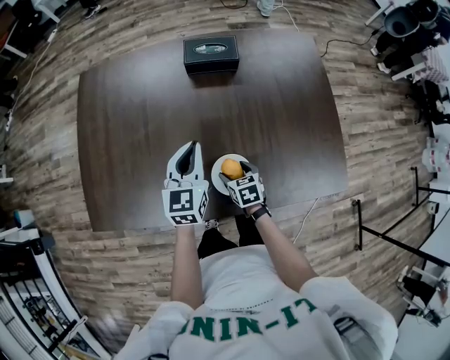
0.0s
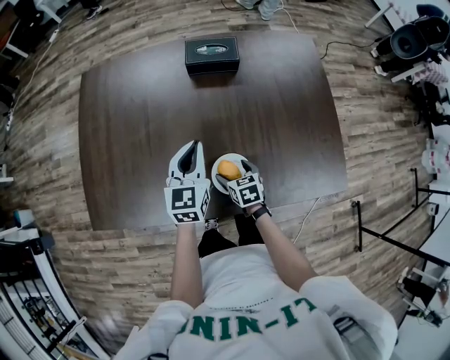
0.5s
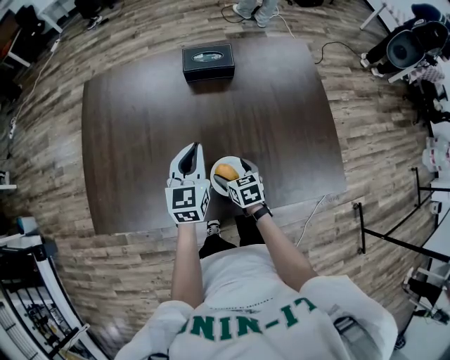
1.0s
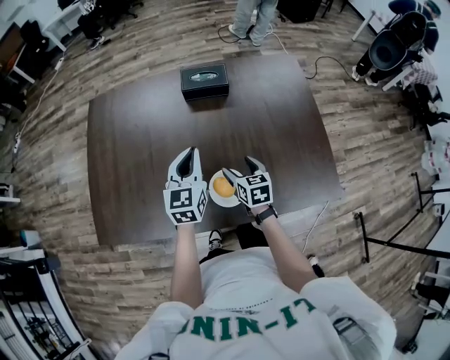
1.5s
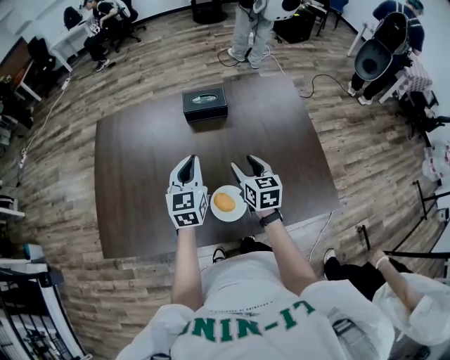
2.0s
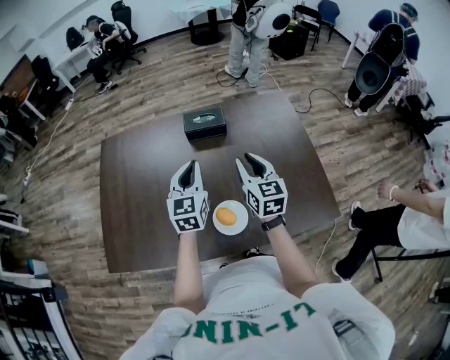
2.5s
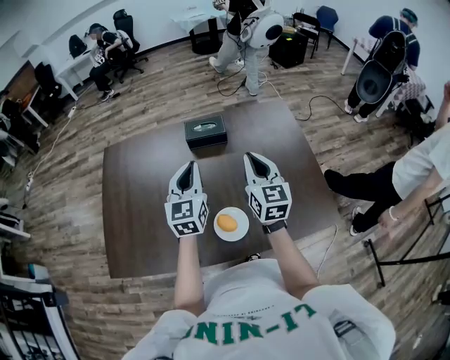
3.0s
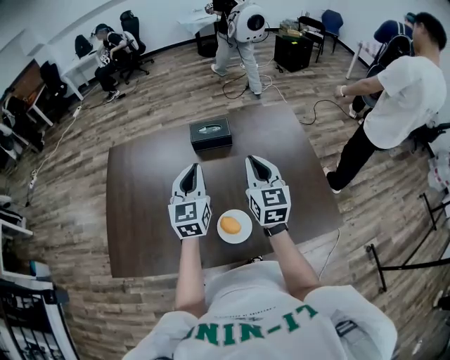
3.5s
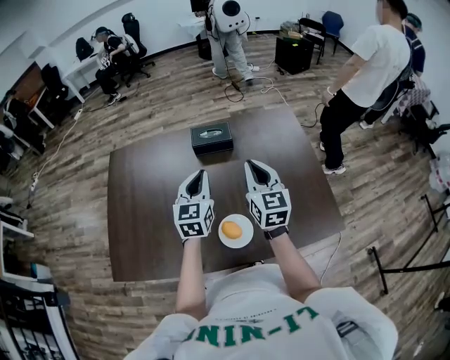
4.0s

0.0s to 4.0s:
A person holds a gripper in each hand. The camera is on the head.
0.0s to 2.0s: The right gripper heads upward, covering some 20 cm, and turns by some 30 degrees, while the left gripper goes approximately 10 cm upward.
2.0s to 4.0s: The left gripper changes place by approximately 5 cm, while the right gripper moves upward, about 15 cm, rotates roughly 20 degrees, and closes its fingers.

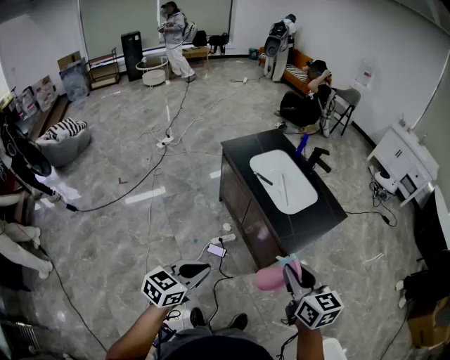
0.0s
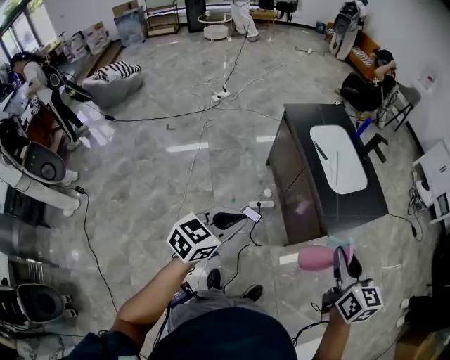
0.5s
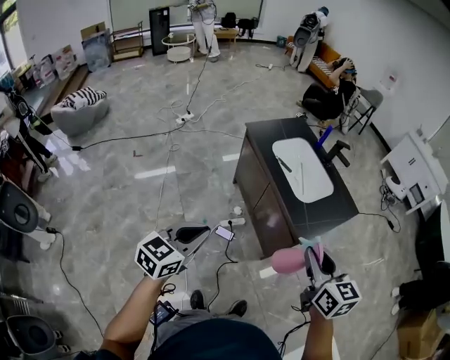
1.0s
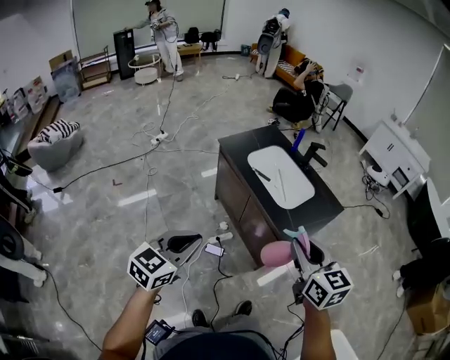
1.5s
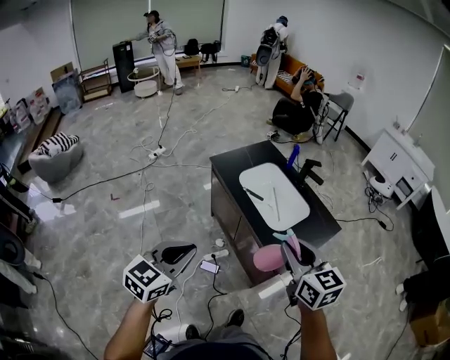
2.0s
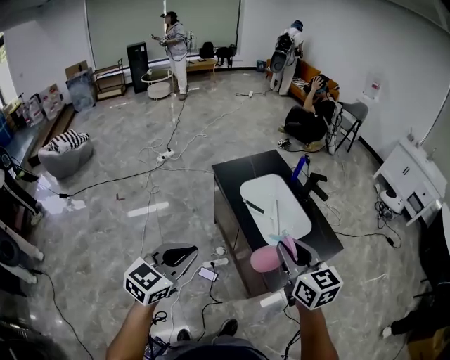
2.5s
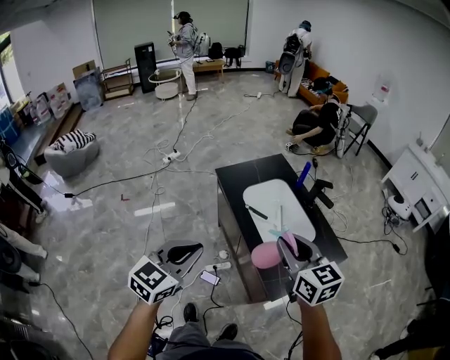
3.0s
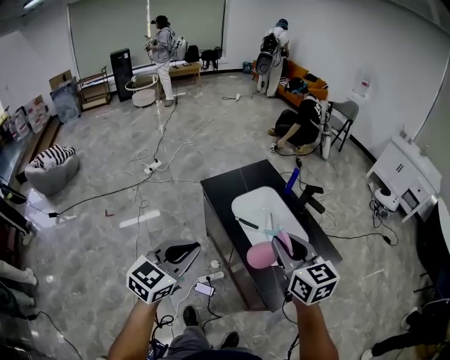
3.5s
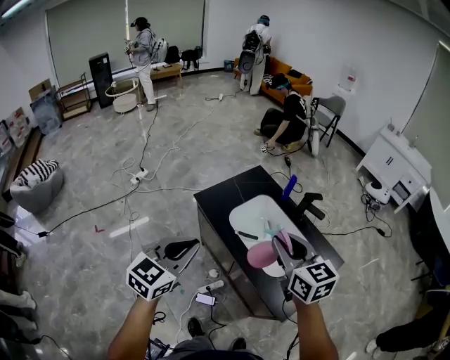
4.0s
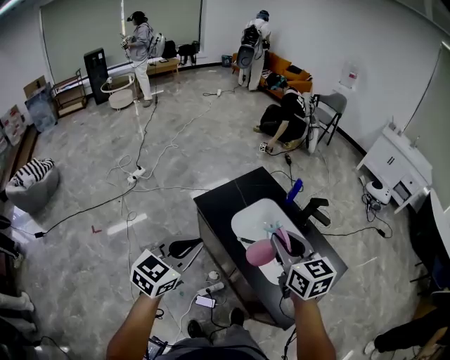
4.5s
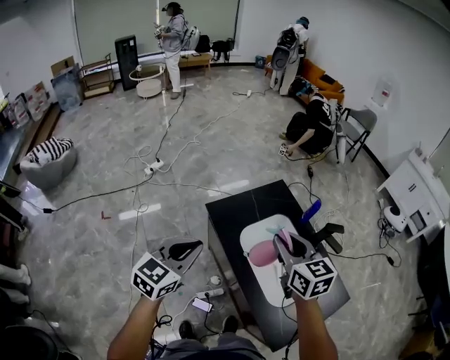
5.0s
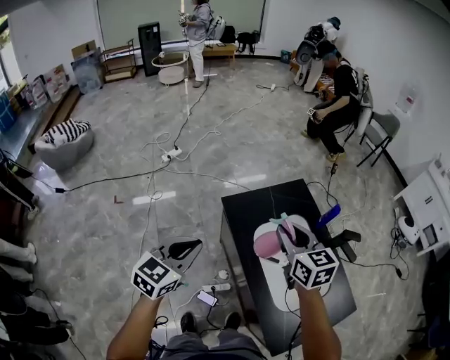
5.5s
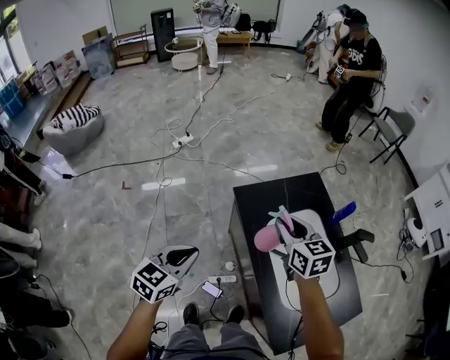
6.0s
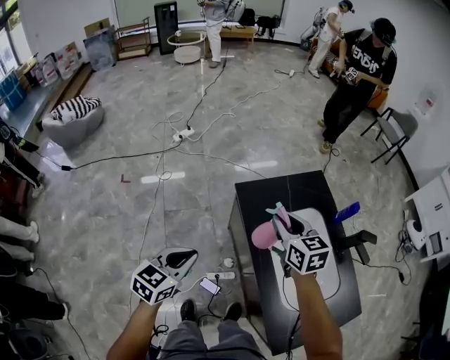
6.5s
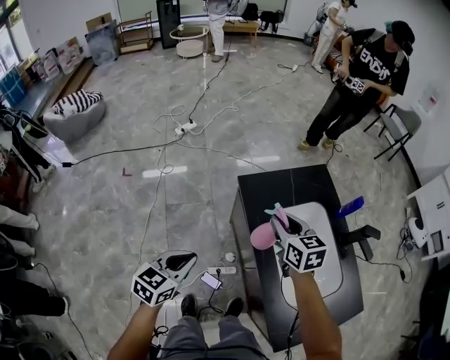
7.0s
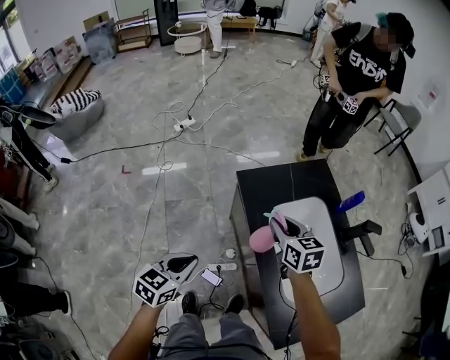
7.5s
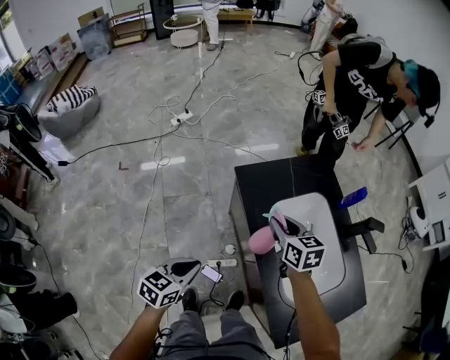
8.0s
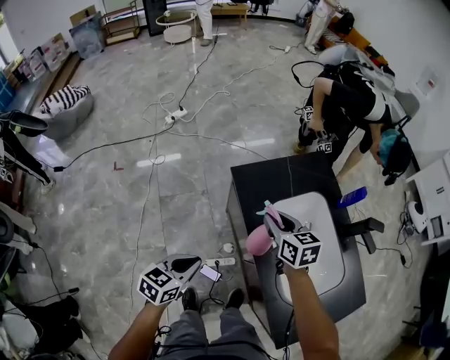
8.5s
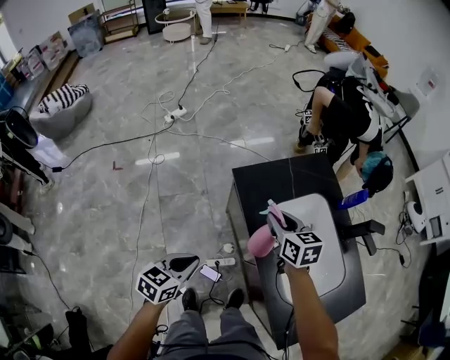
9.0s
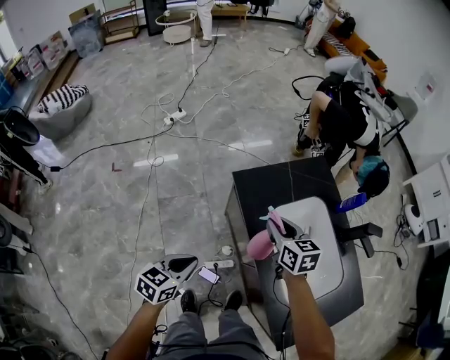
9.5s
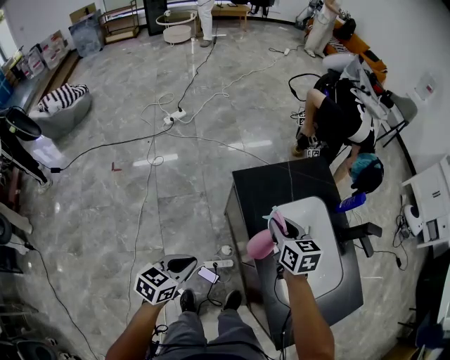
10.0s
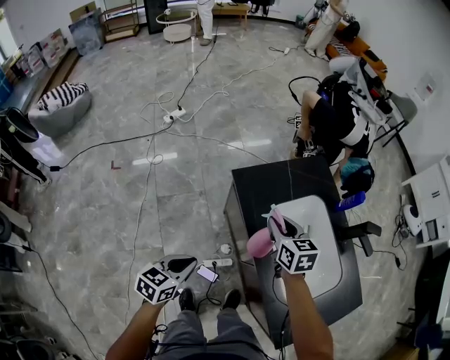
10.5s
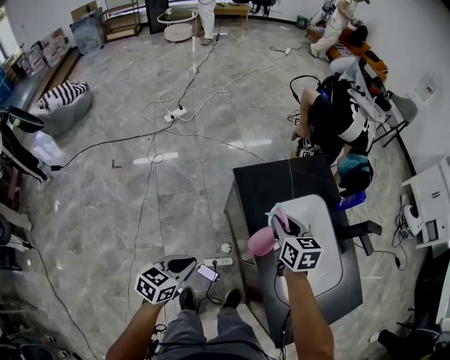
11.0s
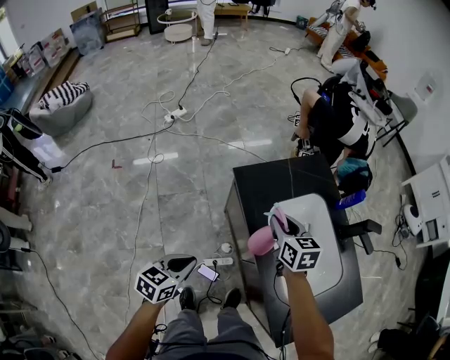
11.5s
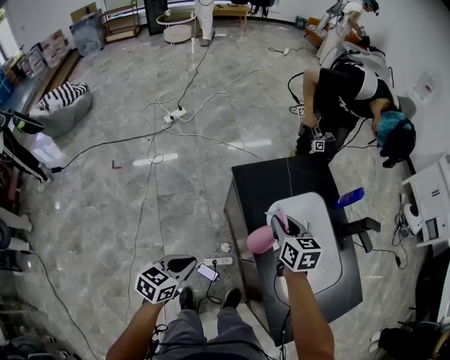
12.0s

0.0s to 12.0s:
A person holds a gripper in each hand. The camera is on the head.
0.0s to 2.0s: Both grippers travel together forward and upward, roughly 20 cm.
2.0s to 4.0s: The grippers both shift forward by roughly 30 cm.
4.0s to 6.0s: The right gripper shifts some 30 cm forward, downward and to the left, and changes its angle by approximately 20 degrees, while the left gripper heads downward, forward and to the left, covering approximately 20 cm, and turns by some 30 degrees.
6.0s to 8.0s: The right gripper is displaced downward by roughly 15 cm. The left gripper travels downward and backward by roughly 15 cm.
8.0s to 10.0s: The left gripper ends up some 5 cm from where it was.
10.0s to 12.0s: There are only small adjustments of the grippers.

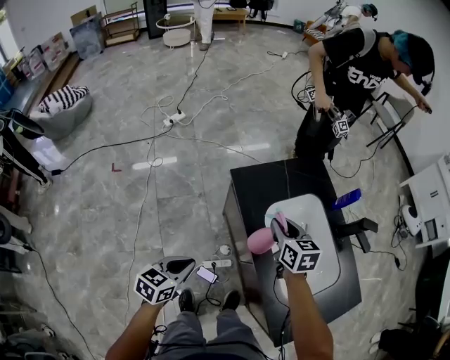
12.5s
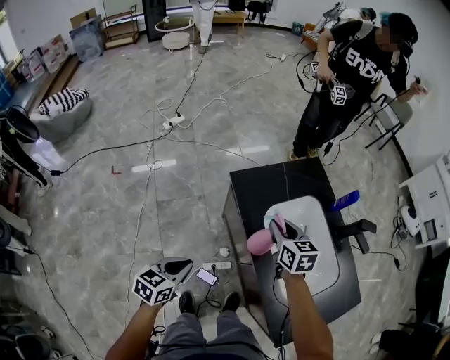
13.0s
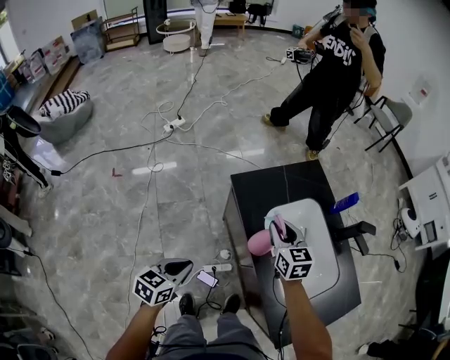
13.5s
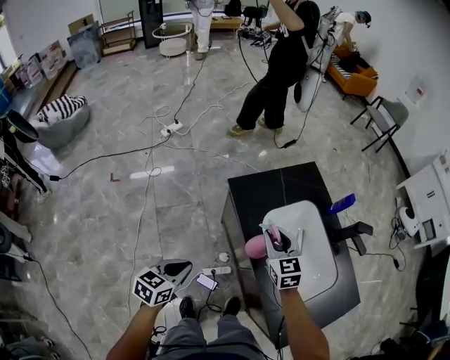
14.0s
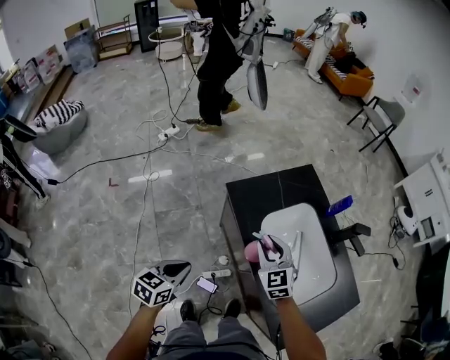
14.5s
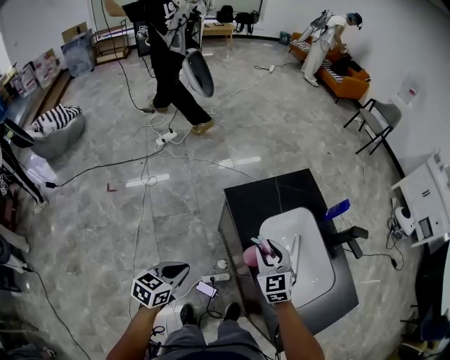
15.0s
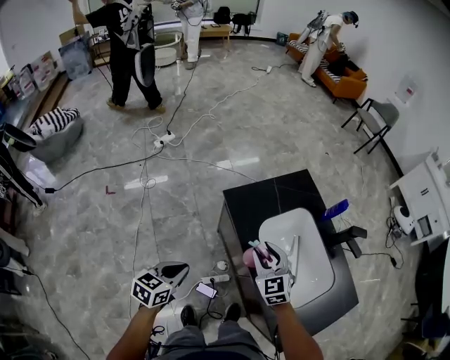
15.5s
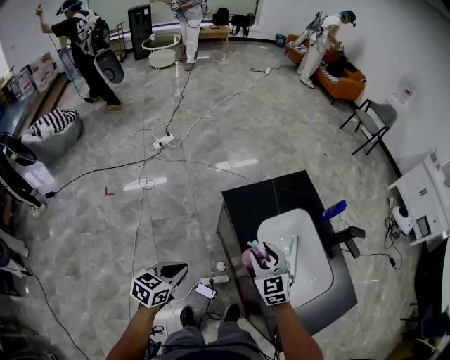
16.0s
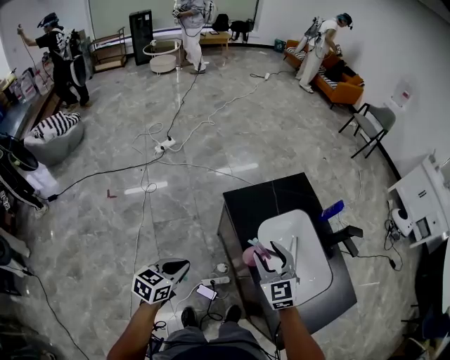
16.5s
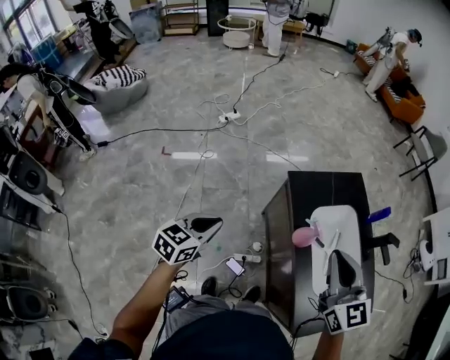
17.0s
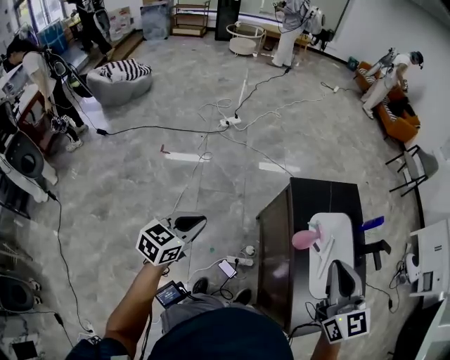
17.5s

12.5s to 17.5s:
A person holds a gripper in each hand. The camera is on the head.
12.5s to 15.0s: The right gripper ends up roughly 5 cm from where it was, and turns by some 30 degrees, while the left gripper moves approximately 5 cm.
15.0s to 17.5s: The left gripper travels to the left, upward and backward by some 25 cm; the right gripper is displaced upward and backward by approximately 35 cm, turns by approximately 20 degrees, and closes.

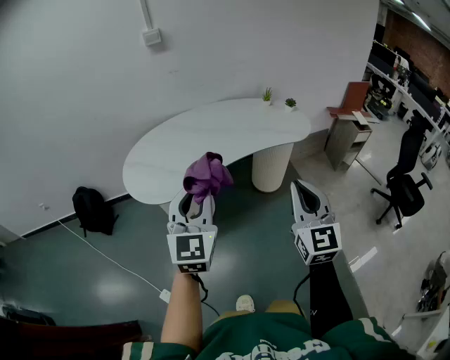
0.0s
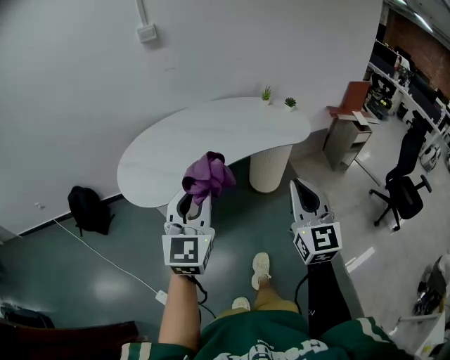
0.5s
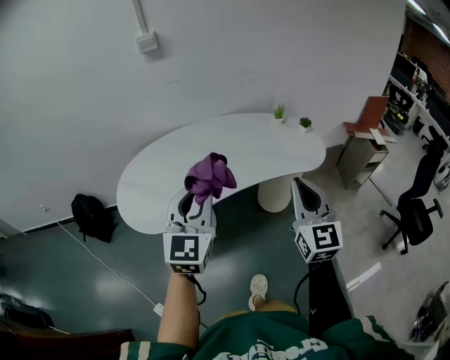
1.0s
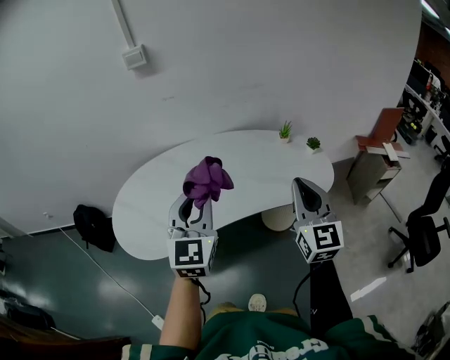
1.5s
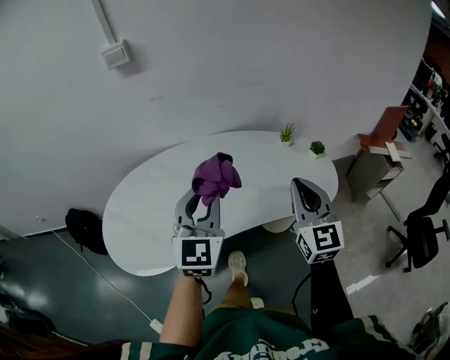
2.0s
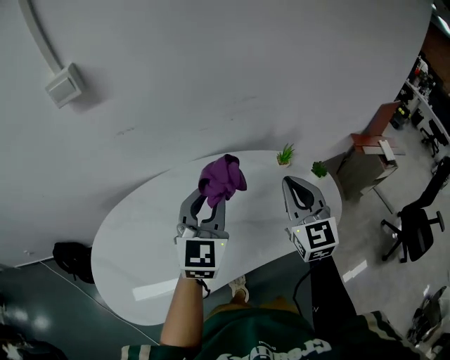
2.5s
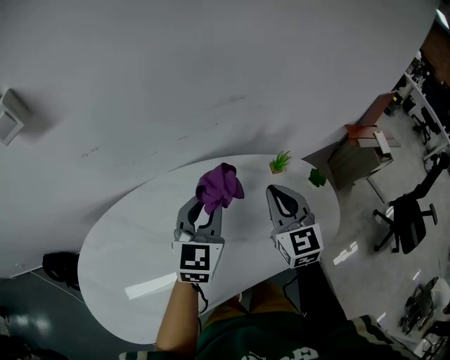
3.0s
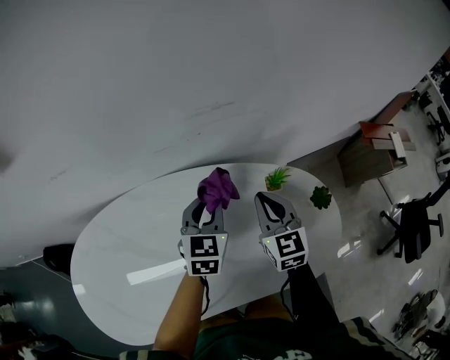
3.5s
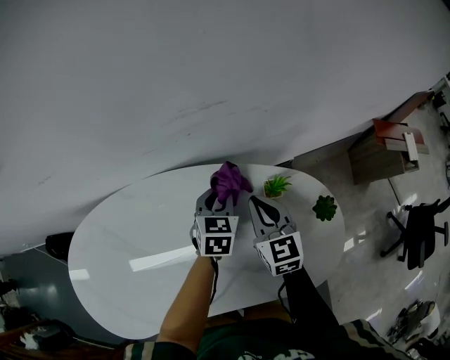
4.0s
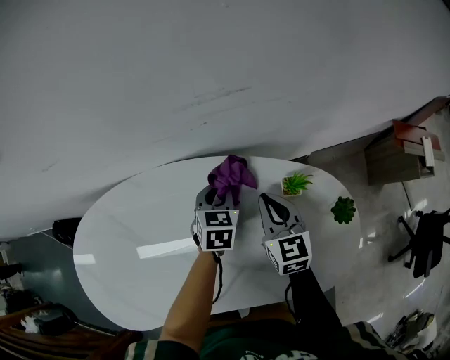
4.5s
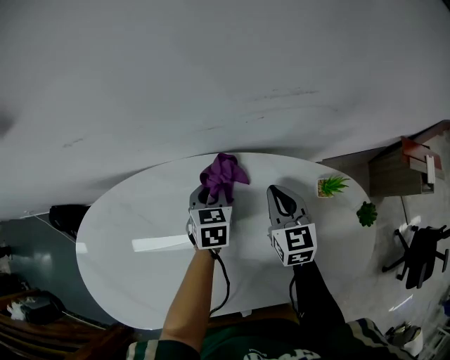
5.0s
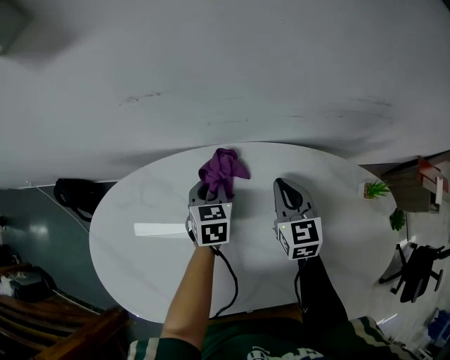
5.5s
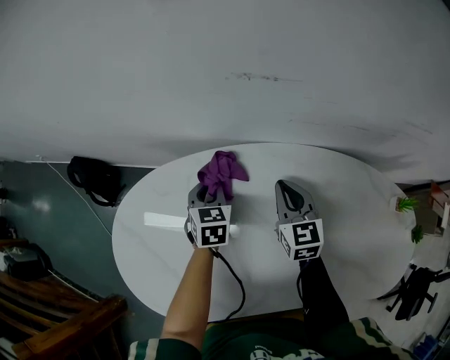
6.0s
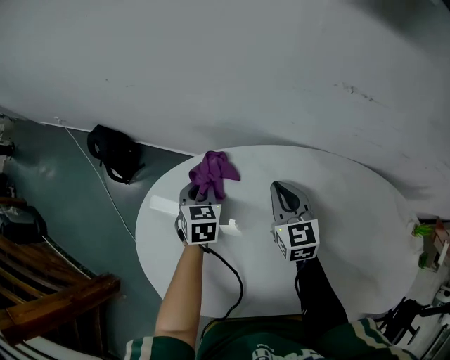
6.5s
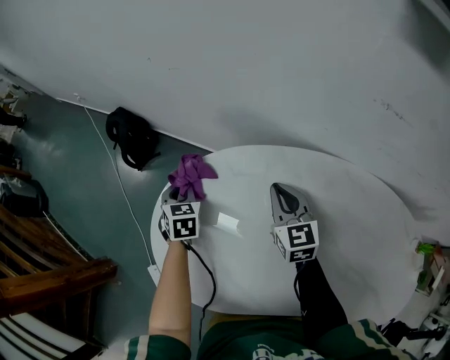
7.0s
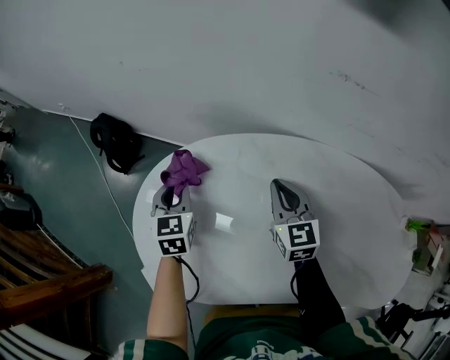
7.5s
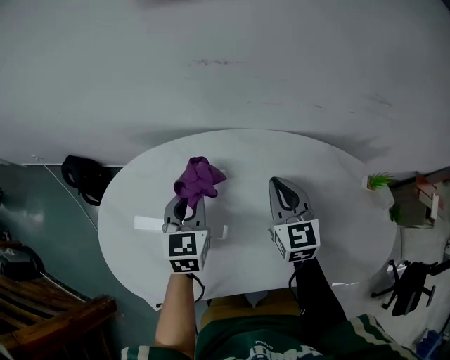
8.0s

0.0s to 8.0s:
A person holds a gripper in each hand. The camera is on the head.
0.0s to 2.0s: The pair of grippers is taken forward, some 40 cm.
2.0s to 4.0s: The grippers both shift forward and downward by roughly 50 cm. The left gripper tips its fingers downward by about 40 degrees. The right gripper rotates approximately 30 degrees.
4.0s to 6.0s: The two grippers travel together, to the left, about 50 cm. The left gripper changes its angle by approximately 30 degrees.
6.0s to 8.0s: The left gripper moves upward, about 10 cm.
